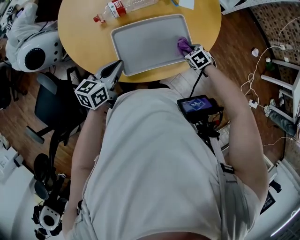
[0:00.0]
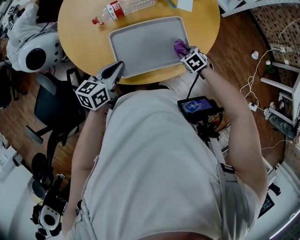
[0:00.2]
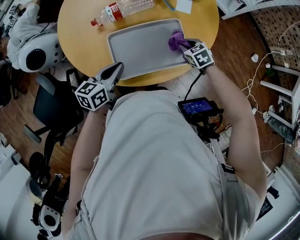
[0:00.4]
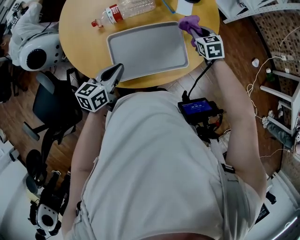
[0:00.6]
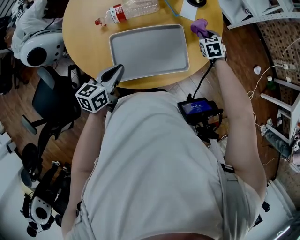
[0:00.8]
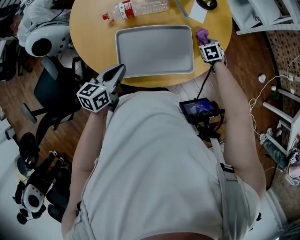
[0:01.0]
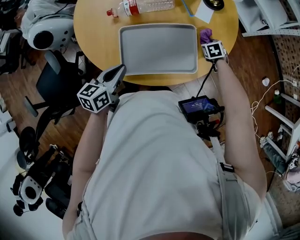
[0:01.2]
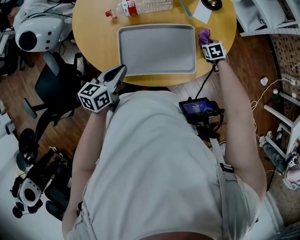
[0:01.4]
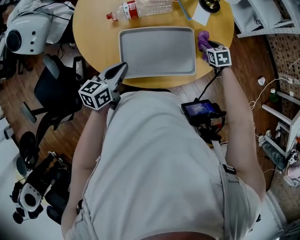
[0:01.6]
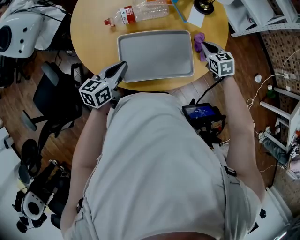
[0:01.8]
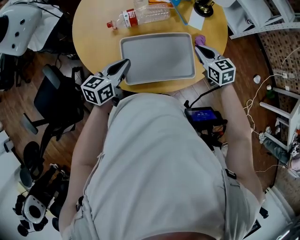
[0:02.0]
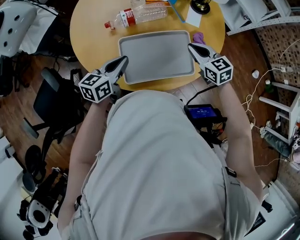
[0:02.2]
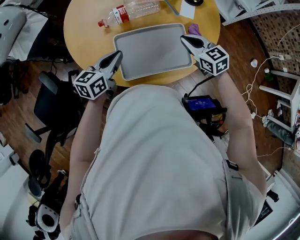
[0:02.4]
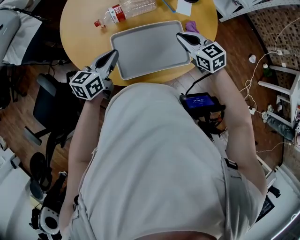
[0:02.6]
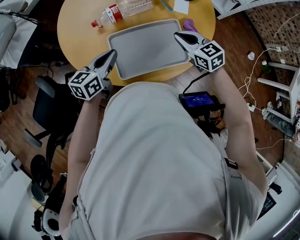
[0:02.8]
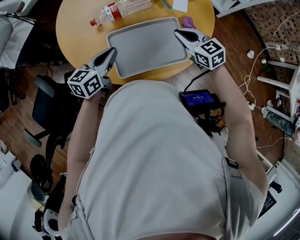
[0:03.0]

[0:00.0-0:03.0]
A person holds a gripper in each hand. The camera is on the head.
0:00.0 to 0:01.6: The right gripper shifts approximately 15 cm forward, and opens up.
0:01.6 to 0:03.0: The right gripper shifts some 25 cm upward, to the left and backward, changes its angle by approximately 30 degrees, and closes its fingers, while the left gripper changes place by about 5 cm.

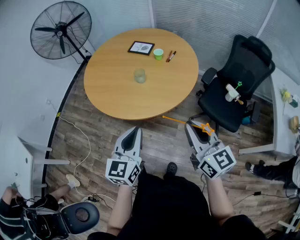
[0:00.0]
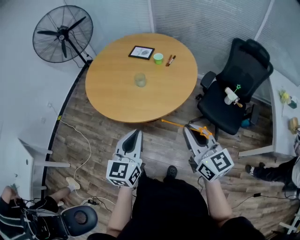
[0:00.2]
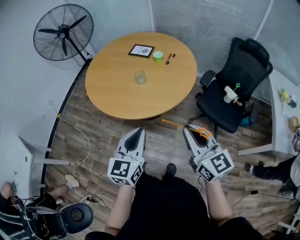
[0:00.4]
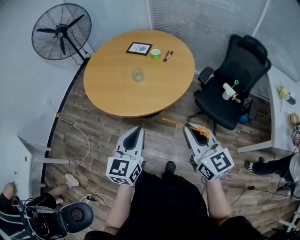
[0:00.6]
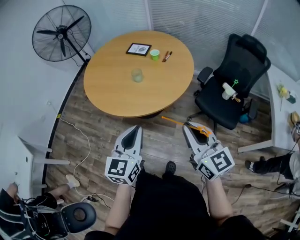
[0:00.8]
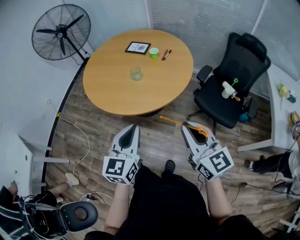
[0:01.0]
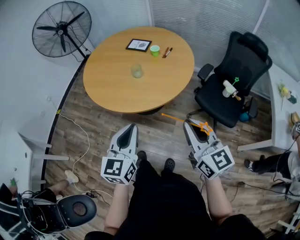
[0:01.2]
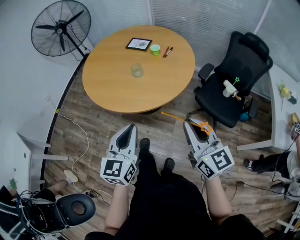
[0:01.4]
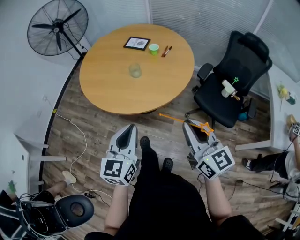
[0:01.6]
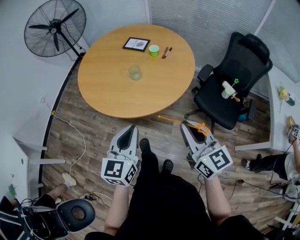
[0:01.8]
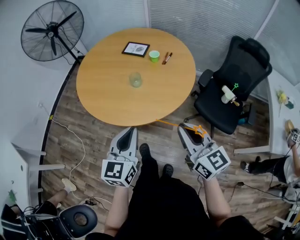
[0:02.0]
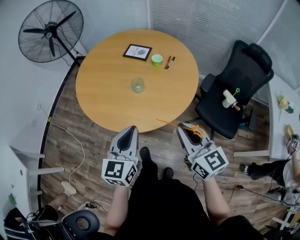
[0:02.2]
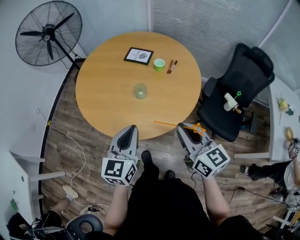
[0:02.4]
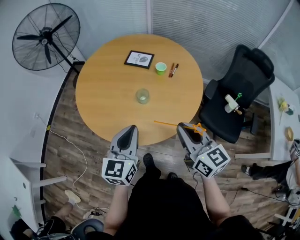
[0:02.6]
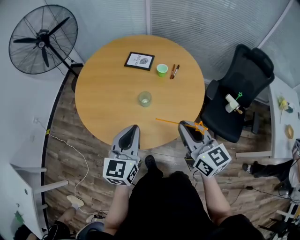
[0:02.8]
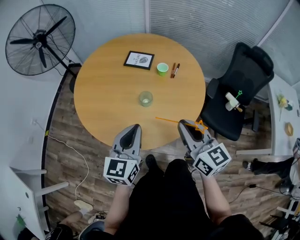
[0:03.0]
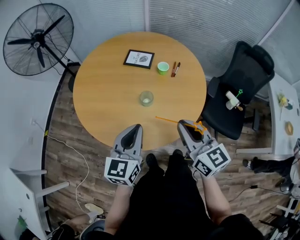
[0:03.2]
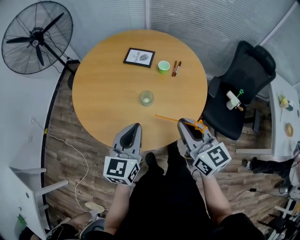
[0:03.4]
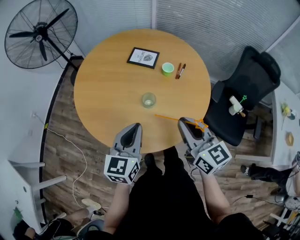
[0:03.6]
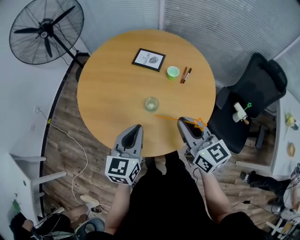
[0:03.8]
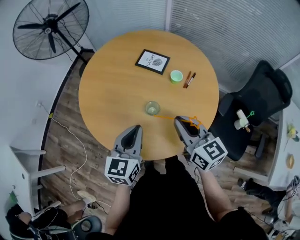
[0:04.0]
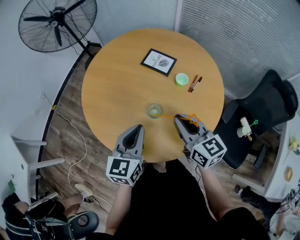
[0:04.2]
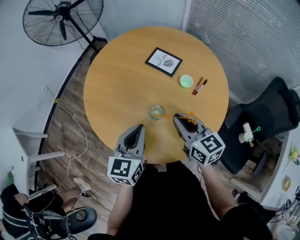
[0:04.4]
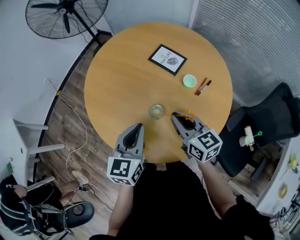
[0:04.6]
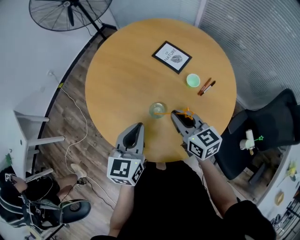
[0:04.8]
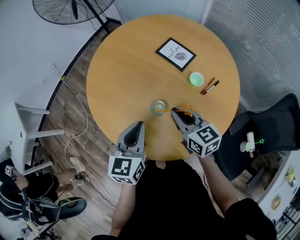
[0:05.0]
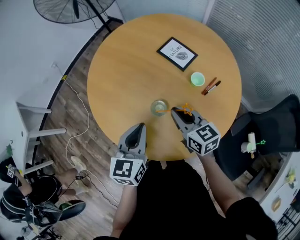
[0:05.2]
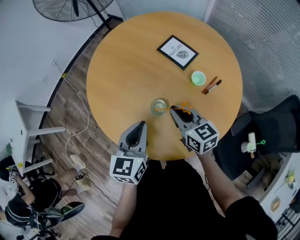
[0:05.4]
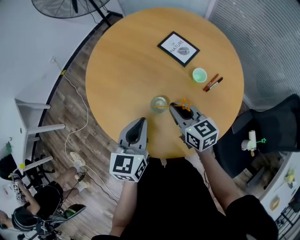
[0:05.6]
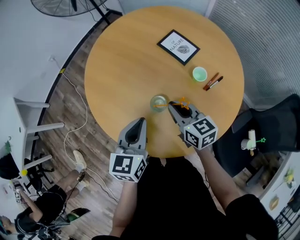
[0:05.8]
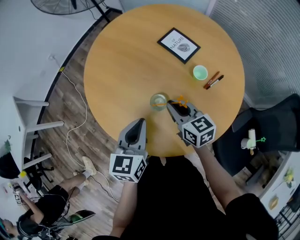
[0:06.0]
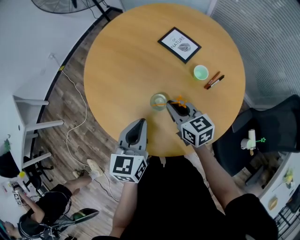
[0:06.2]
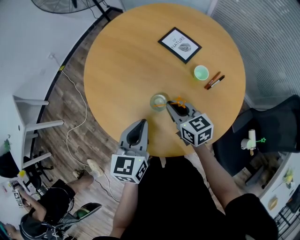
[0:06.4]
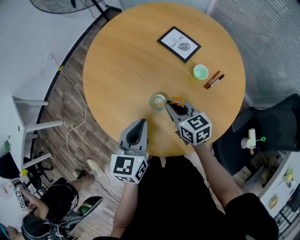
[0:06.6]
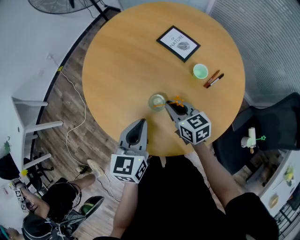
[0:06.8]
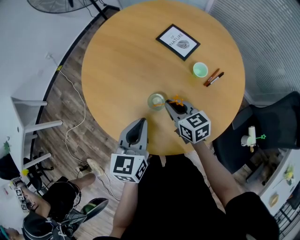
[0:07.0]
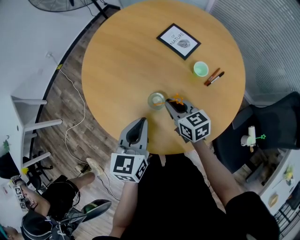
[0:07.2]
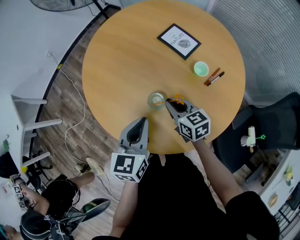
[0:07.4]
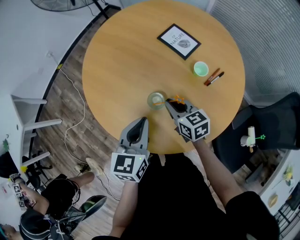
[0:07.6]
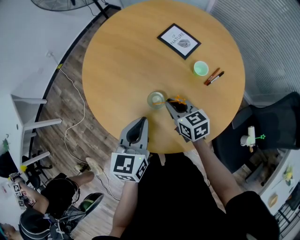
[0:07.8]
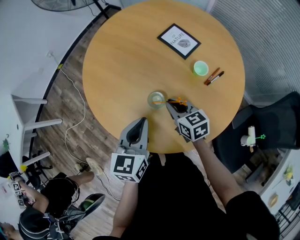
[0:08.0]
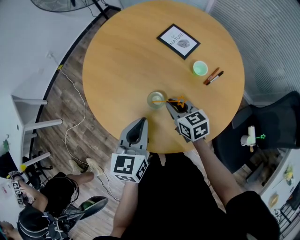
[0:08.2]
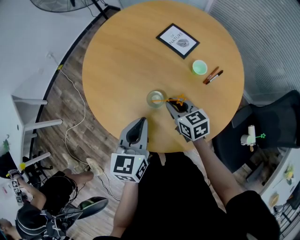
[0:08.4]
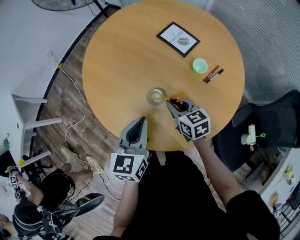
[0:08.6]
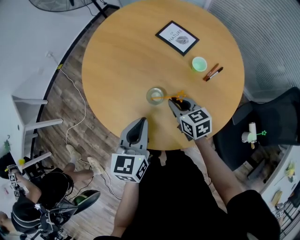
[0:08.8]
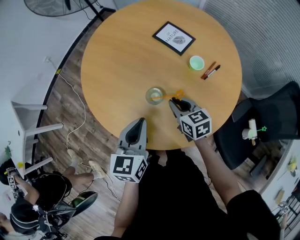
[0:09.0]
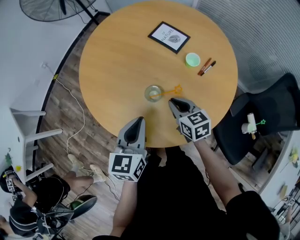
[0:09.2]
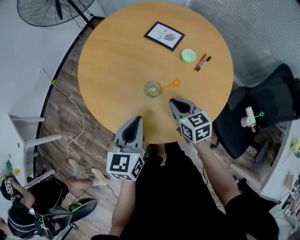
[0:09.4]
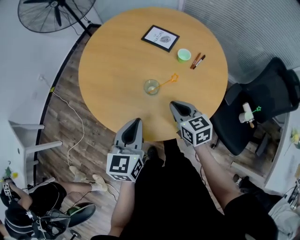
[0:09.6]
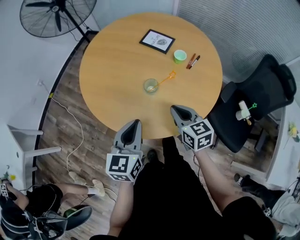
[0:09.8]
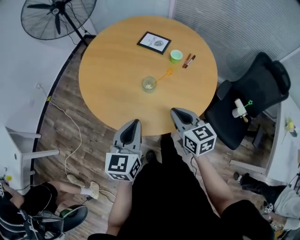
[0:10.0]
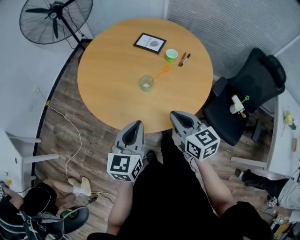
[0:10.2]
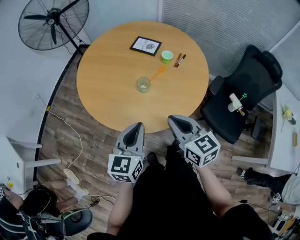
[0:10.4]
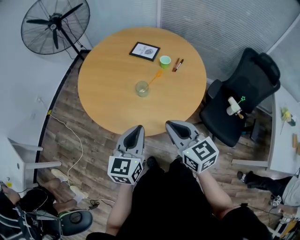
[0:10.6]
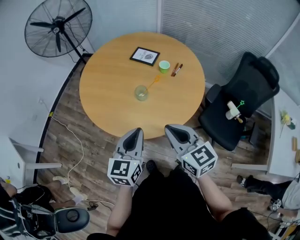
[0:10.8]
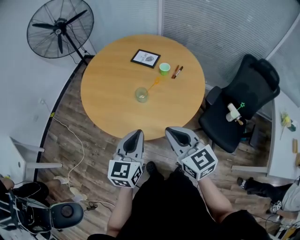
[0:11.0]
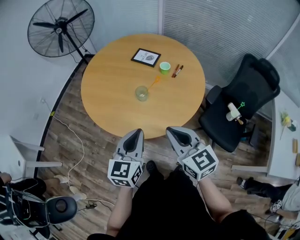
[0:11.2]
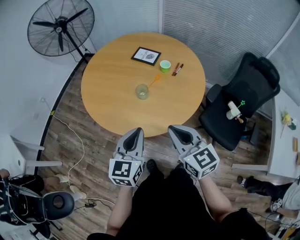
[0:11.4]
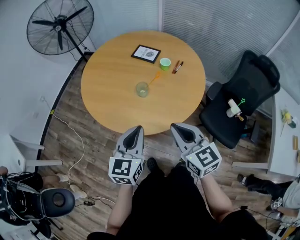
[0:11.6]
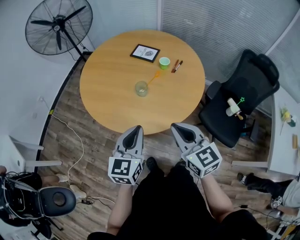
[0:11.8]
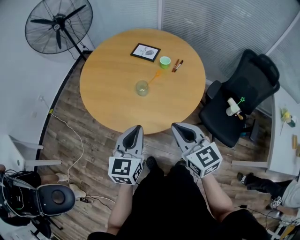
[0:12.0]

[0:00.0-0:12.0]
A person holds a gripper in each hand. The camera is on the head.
0:01.6 to 0:03.0: The left gripper goes roughly 25 cm forward. Meanwhile the right gripper moves forward and to the left, some 25 cm.
0:03.0 to 0:04.4: The left gripper shifts about 10 cm forward, and rotates some 20 degrees. The right gripper travels forward by approximately 20 cm, and rotates roughly 20 degrees.
0:04.4 to 0:06.0: The left gripper goes about 5 cm downward; the right gripper moves downward and forward, approximately 10 cm.
0:06.0 to 0:09.0: The grippers make only small movements.
0:09.0 to 0:10.4: The left gripper is displaced backward by approximately 15 cm, and rotates roughly 20 degrees; the right gripper heads backward and upward, covering some 30 cm, and changes its angle by roughly 20 degrees.
0:10.4 to 0:12.0: The right gripper heads backward, covering some 5 cm.

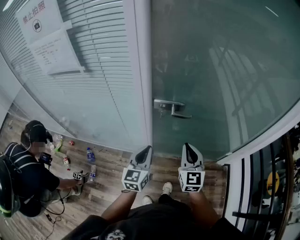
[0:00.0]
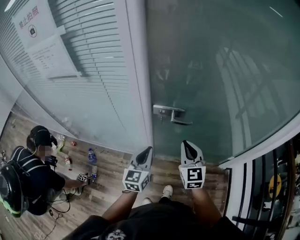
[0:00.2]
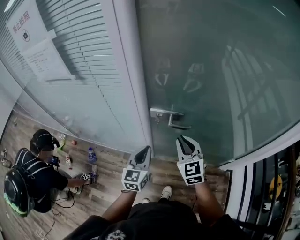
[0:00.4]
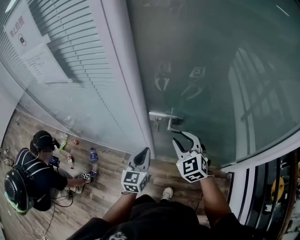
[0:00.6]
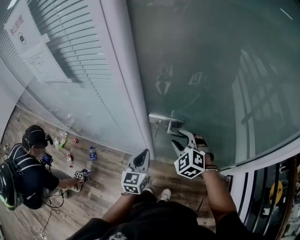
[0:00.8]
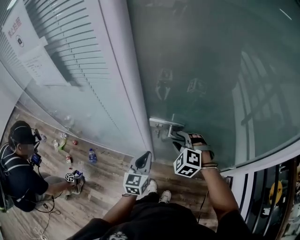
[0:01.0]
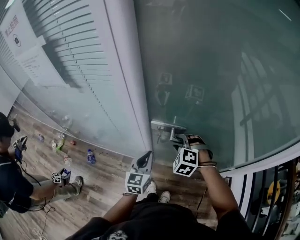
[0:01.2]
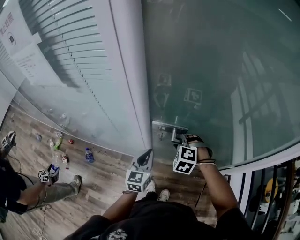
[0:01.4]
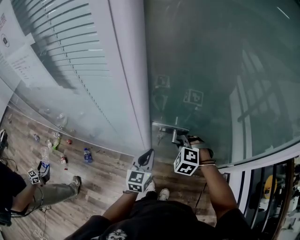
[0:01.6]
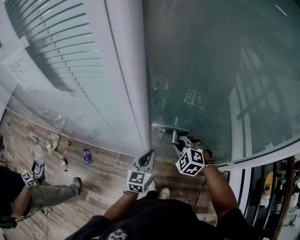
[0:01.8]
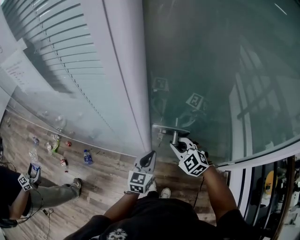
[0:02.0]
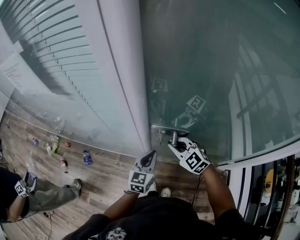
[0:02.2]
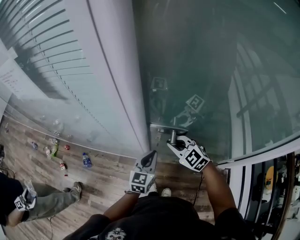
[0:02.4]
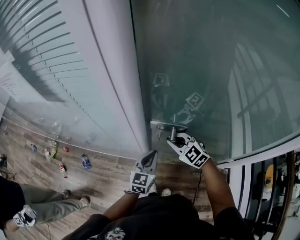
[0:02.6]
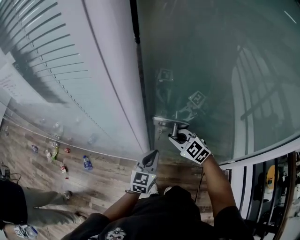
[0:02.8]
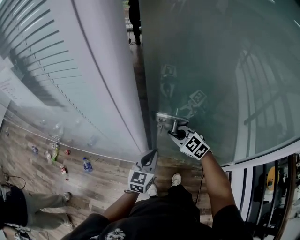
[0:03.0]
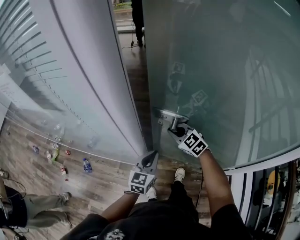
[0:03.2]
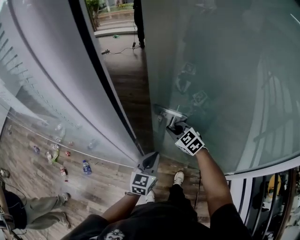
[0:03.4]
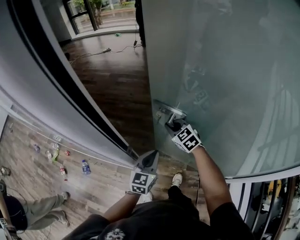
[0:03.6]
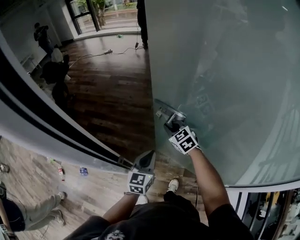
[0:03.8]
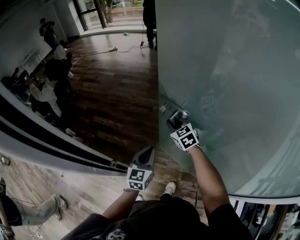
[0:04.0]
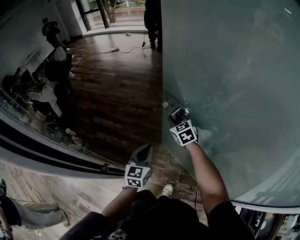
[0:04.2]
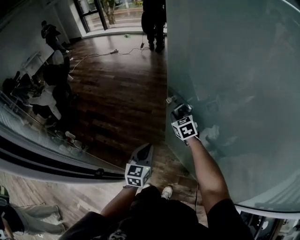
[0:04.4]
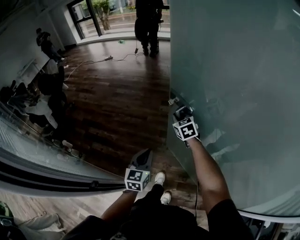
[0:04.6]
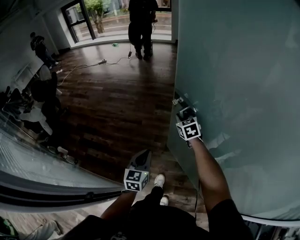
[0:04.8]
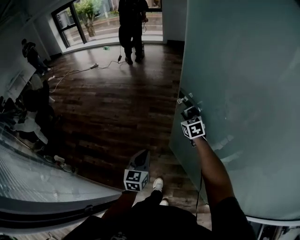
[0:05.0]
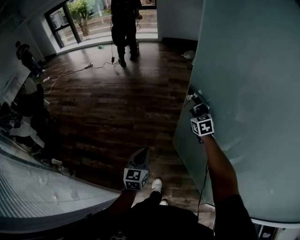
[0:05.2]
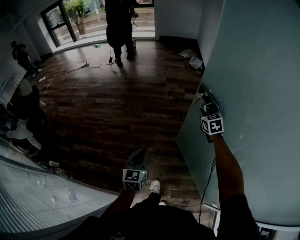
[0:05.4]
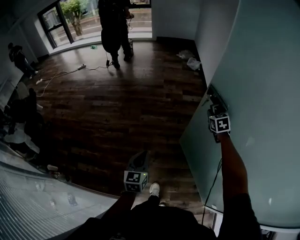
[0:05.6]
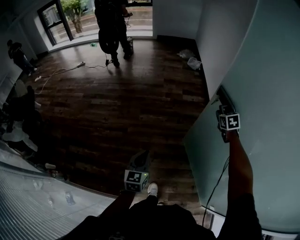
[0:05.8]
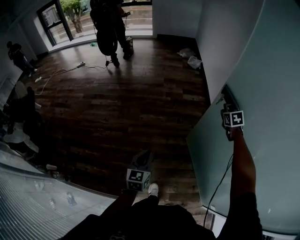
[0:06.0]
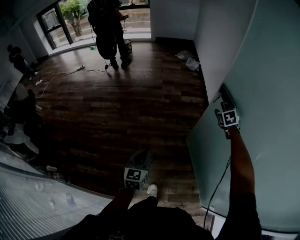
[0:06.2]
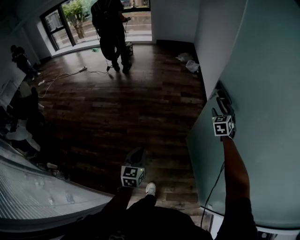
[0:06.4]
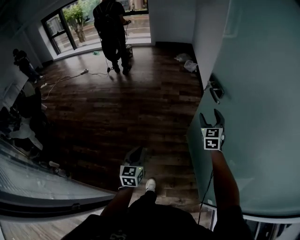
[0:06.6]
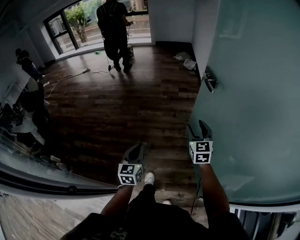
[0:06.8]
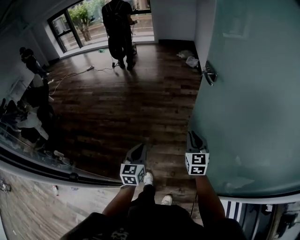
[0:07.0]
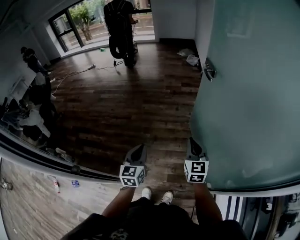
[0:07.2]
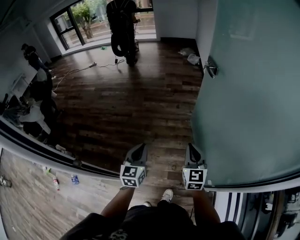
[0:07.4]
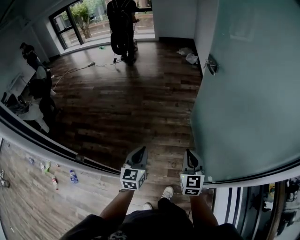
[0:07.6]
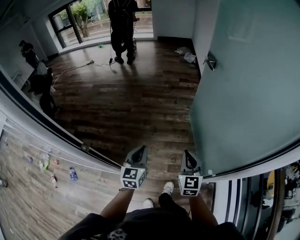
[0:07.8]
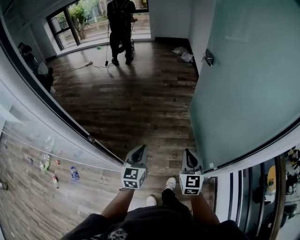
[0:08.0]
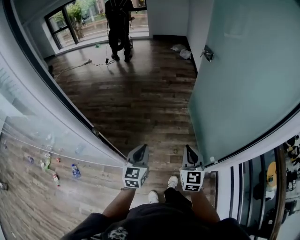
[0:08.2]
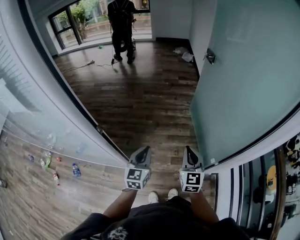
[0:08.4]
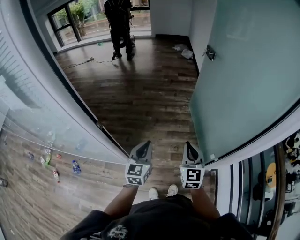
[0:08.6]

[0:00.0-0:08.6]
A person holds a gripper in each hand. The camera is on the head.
0:00.0 to 0:01.4: Both grippers travel together forward and downward, roughly 20 cm. The right gripper tilts its fingers approximately 50 degrees downward, and opens.
0:01.4 to 0:02.8: The left gripper ends up about 5 cm from where it was. The right gripper shifts approximately 5 cm forward, swivels some 40 degrees, and closes its fingers.
0:02.8 to 0:04.4: The two grippers go roughly 40 cm forward and to the right. The right gripper rotates roughly 20 degrees.
0:04.4 to 0:05.8: The right gripper heads to the right and forward, covering some 50 cm, and changes its angle by about 30 degrees, while the left gripper goes approximately 30 cm forward.
0:05.8 to 0:07.2: The right gripper is displaced backward by about 50 cm, points its fingers approximately 30 degrees further upward, and opens, then closes again. The left gripper is displaced backward and to the right by some 35 cm.
0:07.2 to 0:08.6: Both grippers move backward, some 30 cm.
